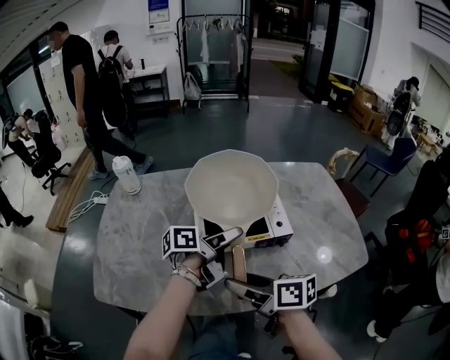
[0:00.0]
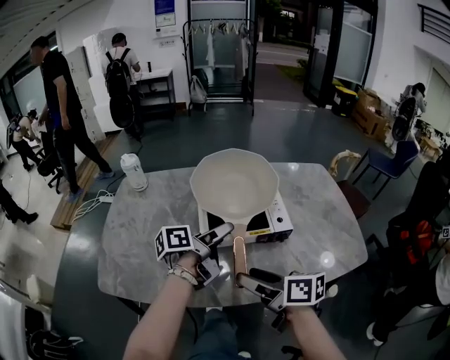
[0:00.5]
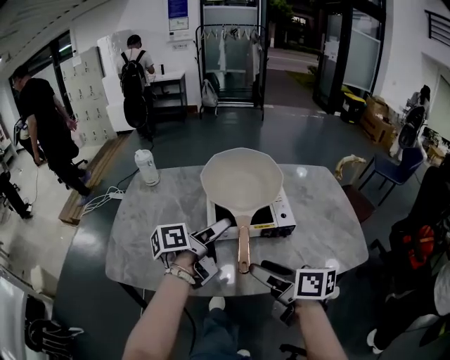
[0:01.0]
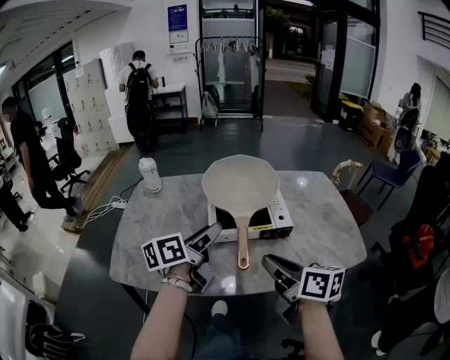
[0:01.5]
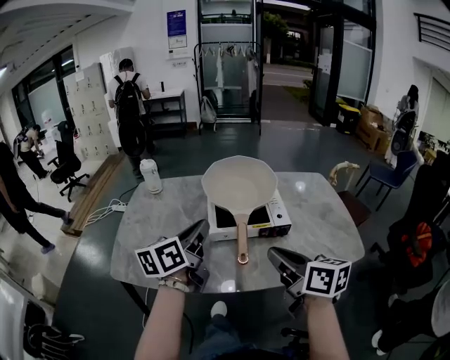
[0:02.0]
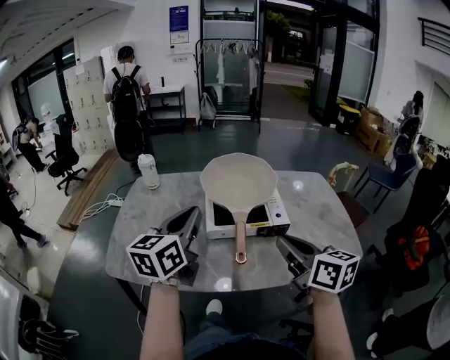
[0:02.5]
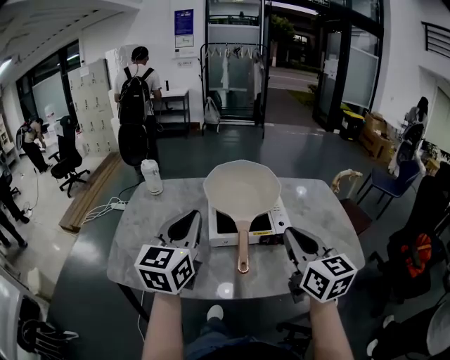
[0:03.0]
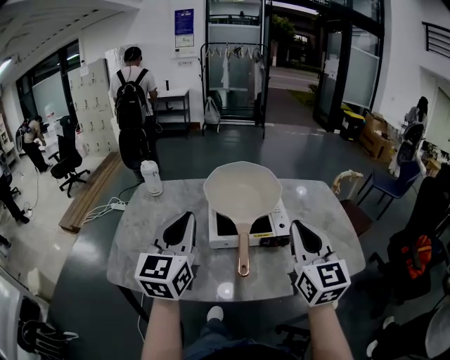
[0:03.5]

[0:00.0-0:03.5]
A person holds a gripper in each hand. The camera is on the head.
0:00.0 to 0:02.0: The left gripper shifts about 20 cm upward, to the left and backward, rotates roughly 50 degrees, and closes its fingers, while the right gripper is displaced upward and to the right by approximately 10 cm, swivels about 20 degrees, and closes.
0:02.0 to 0:03.5: The left gripper heads upward, covering about 5 cm, and swivels about 40 degrees; the right gripper shifts roughly 10 cm upward and forward, and swivels about 50 degrees.

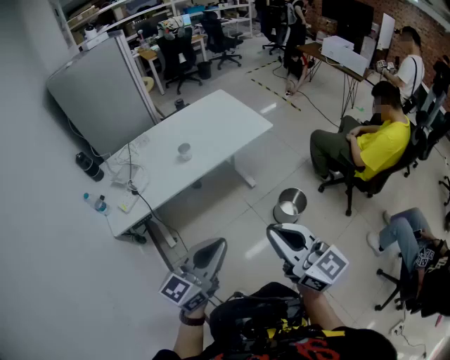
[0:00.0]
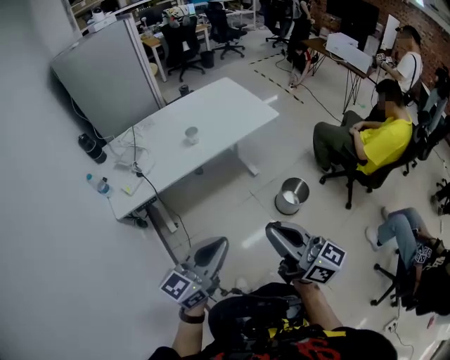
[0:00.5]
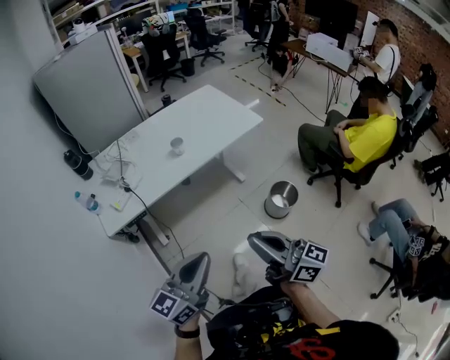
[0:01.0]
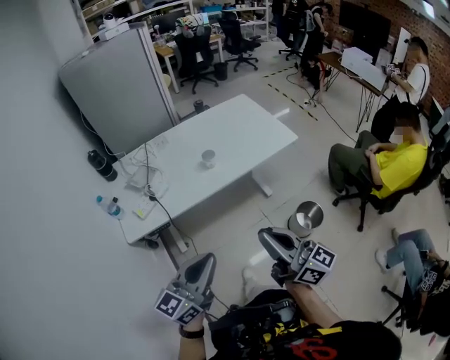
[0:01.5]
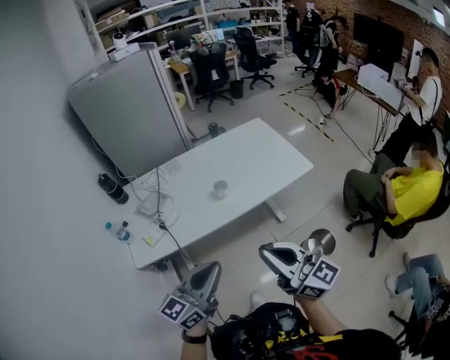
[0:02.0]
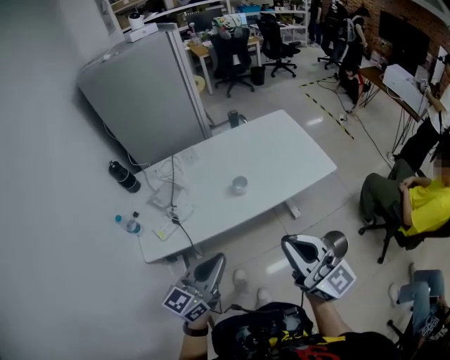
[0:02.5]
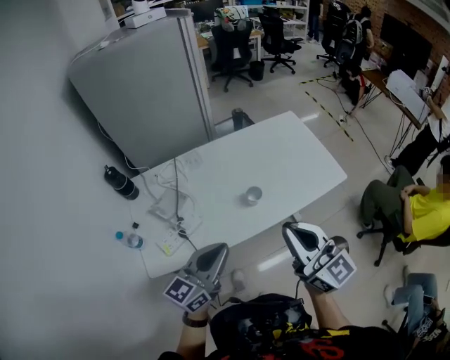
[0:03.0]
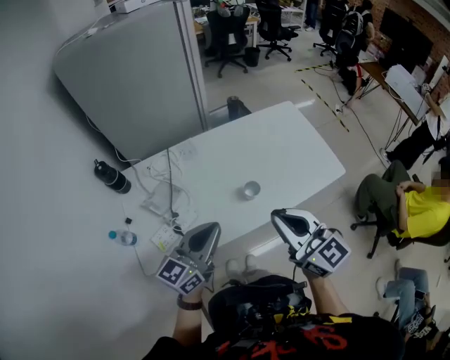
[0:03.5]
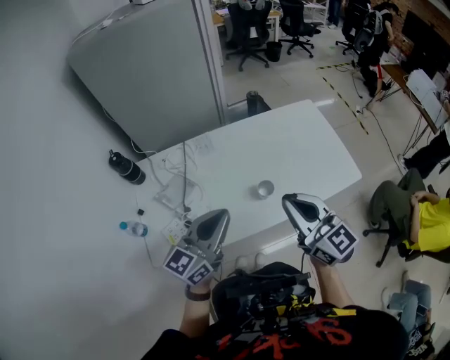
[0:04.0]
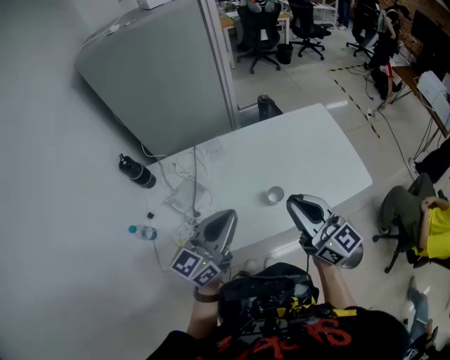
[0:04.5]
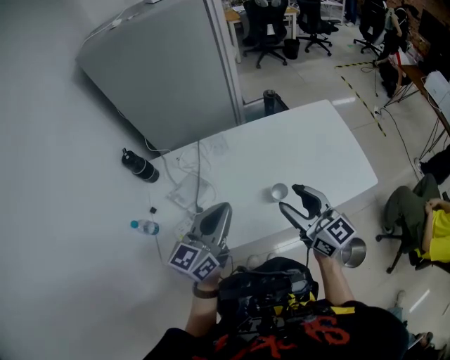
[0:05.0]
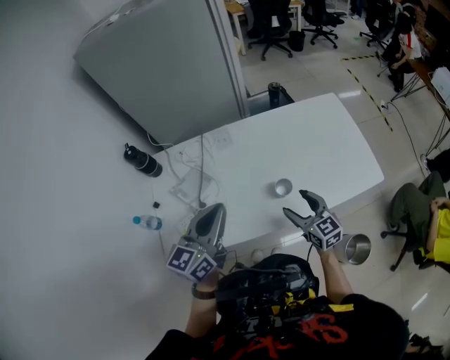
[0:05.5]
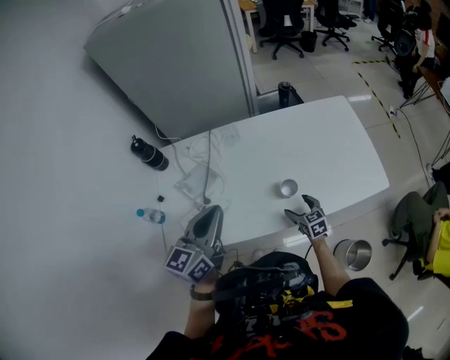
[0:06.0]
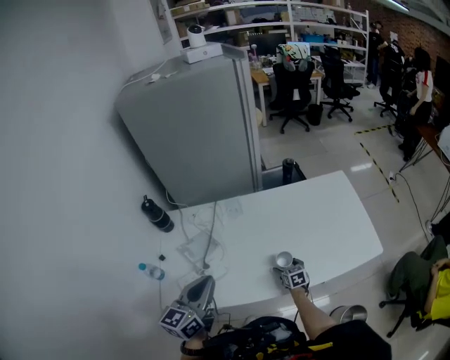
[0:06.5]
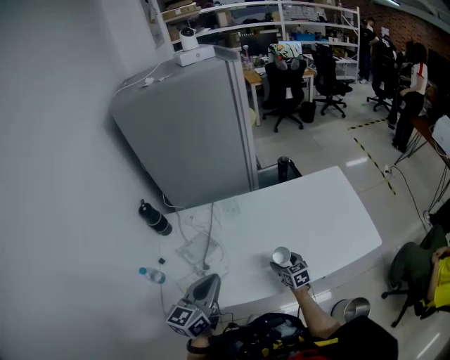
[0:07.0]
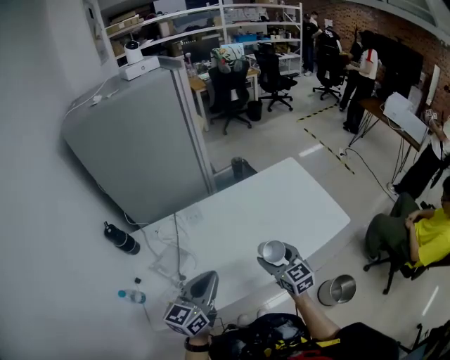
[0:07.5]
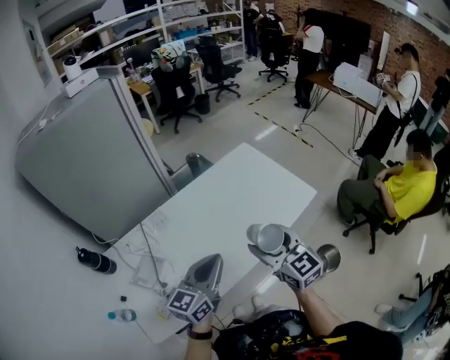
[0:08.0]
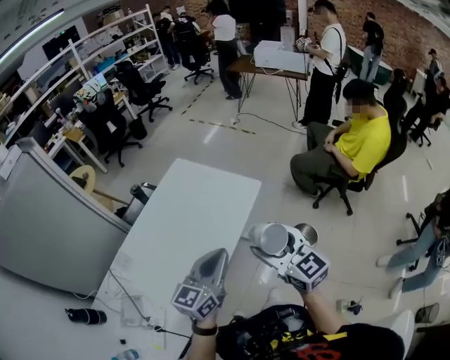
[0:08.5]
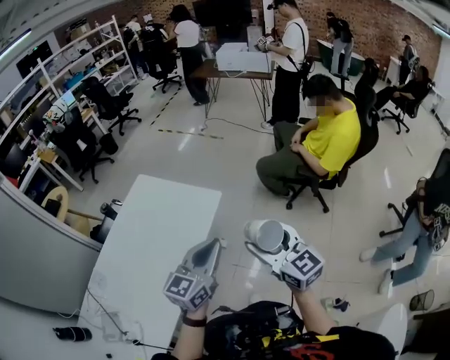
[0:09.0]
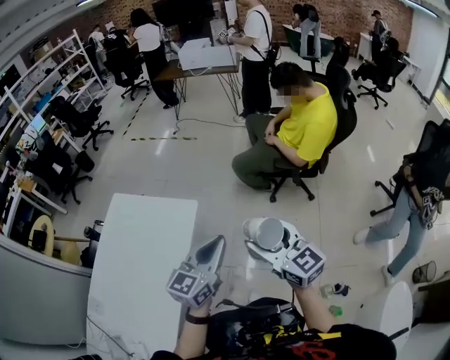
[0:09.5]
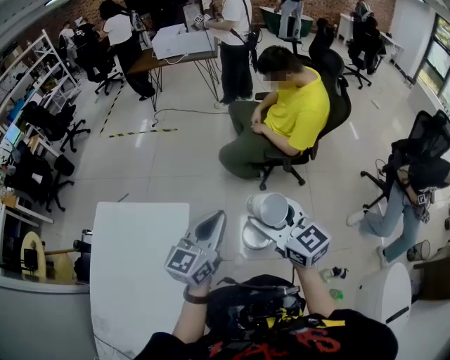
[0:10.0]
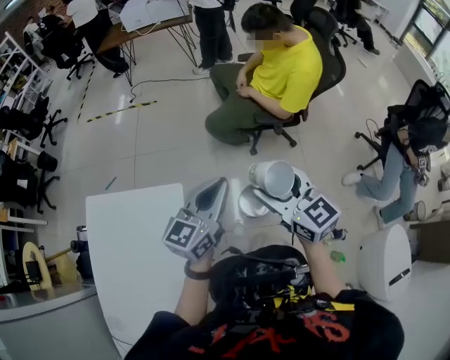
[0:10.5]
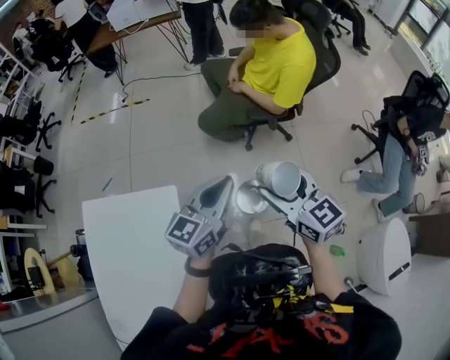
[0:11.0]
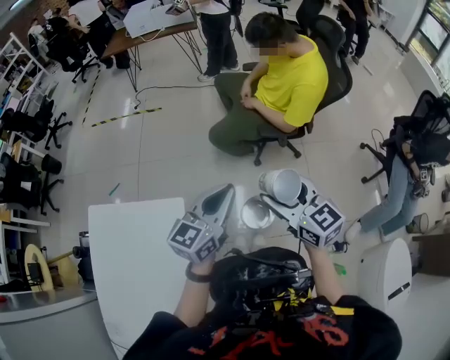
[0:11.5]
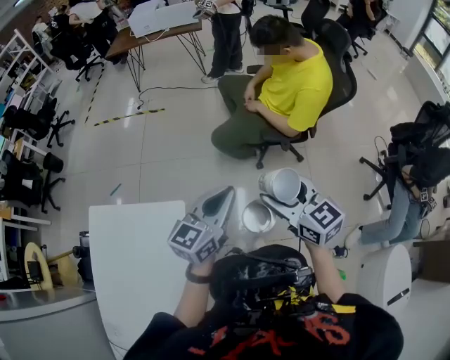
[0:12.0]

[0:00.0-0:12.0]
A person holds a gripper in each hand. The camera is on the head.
0:00.0 to 0:02.0: The grippers both shift forward and to the left by roughly 20 cm. The right gripper rotates approximately 20 degrees.
0:02.0 to 0:04.0: Both grippers travel together forward, about 30 cm.
0:04.0 to 0:06.0: The right gripper is displaced downward by some 40 cm, points its fingers some 40 degrees further downward, and opens its fingers. Meanwhile the left gripper heads to the left, covering about 5 cm.
0:06.0 to 0:08.0: The right gripper heads upward, covering some 35 cm, and rotates some 30 degrees. The left gripper changes place by approximately 15 cm, and changes its angle by approximately 30 degrees.
0:08.0 to 0:10.0: The pair of grippers is taken roughly 50 cm. The left gripper turns by approximately 50 degrees. Meanwhile the right gripper changes its angle by some 50 degrees.
0:10.0 to 0:12.0: Both grippers travel together forward, about 10 cm.

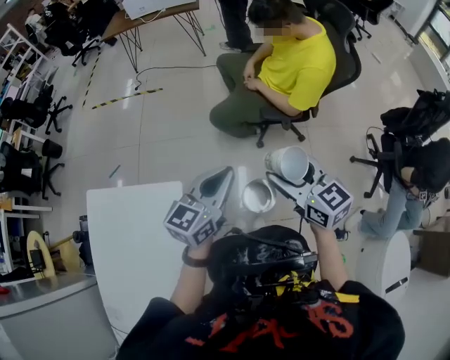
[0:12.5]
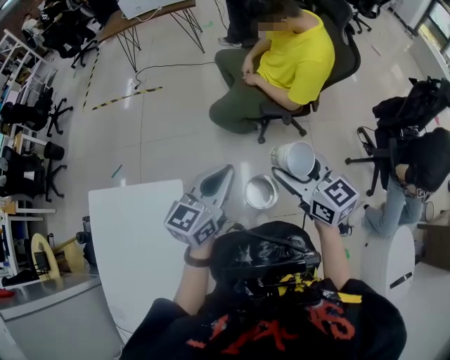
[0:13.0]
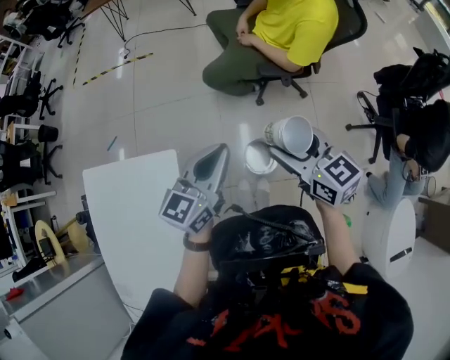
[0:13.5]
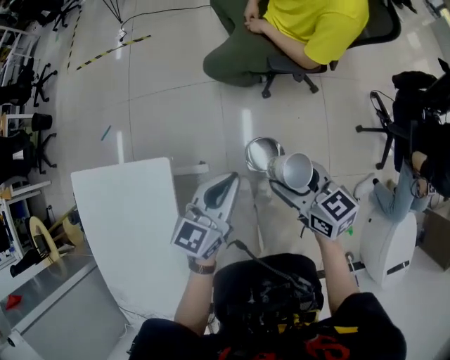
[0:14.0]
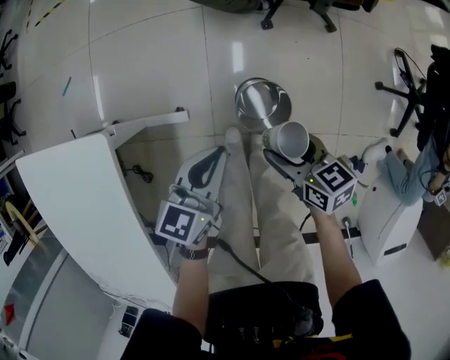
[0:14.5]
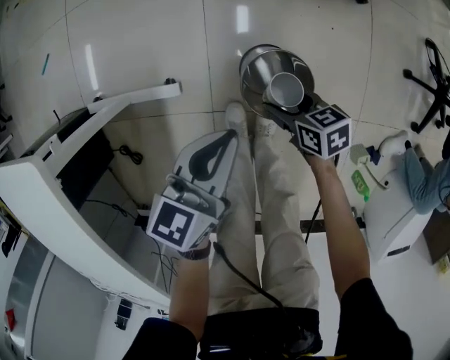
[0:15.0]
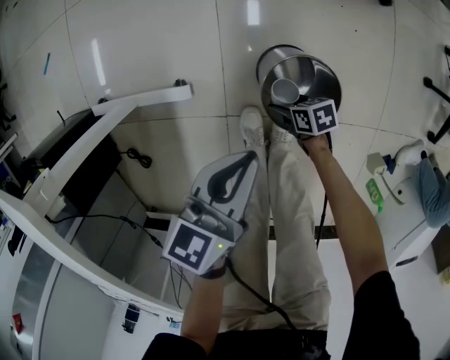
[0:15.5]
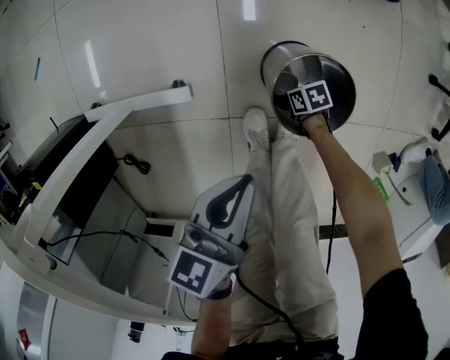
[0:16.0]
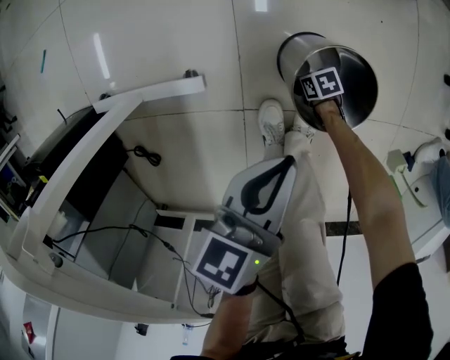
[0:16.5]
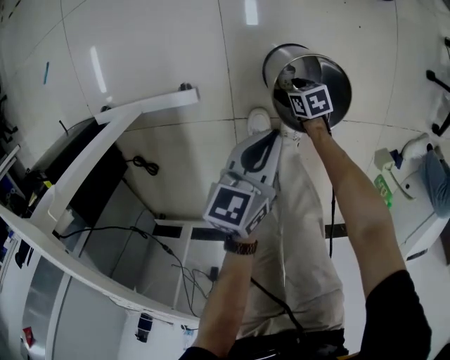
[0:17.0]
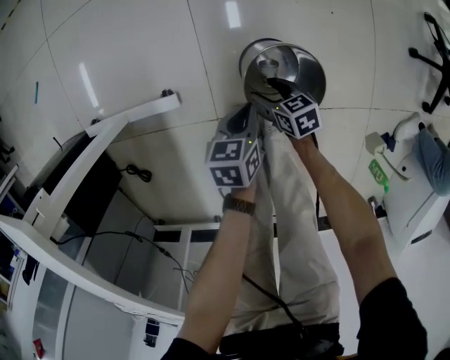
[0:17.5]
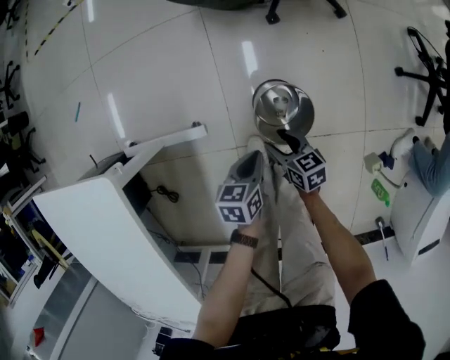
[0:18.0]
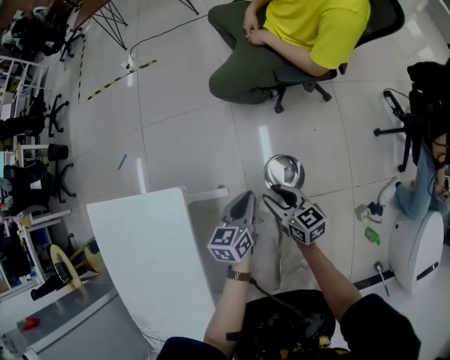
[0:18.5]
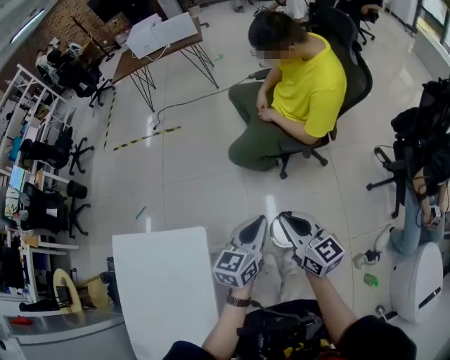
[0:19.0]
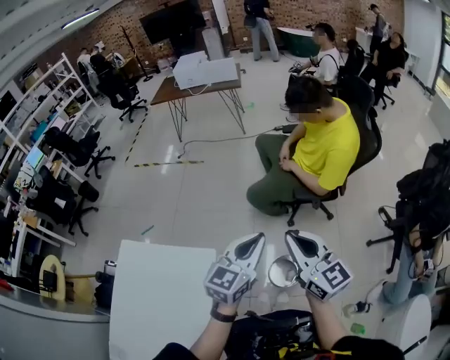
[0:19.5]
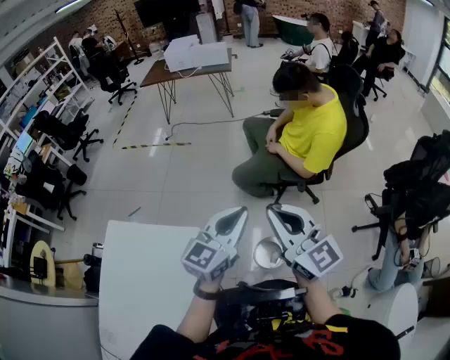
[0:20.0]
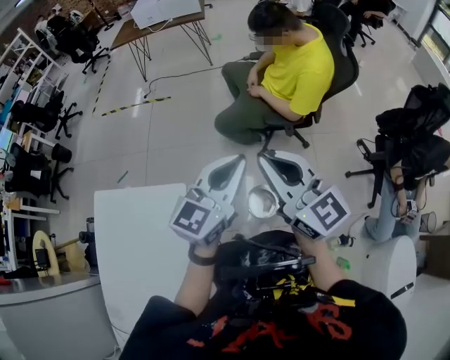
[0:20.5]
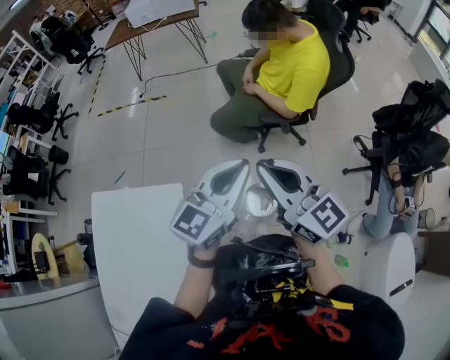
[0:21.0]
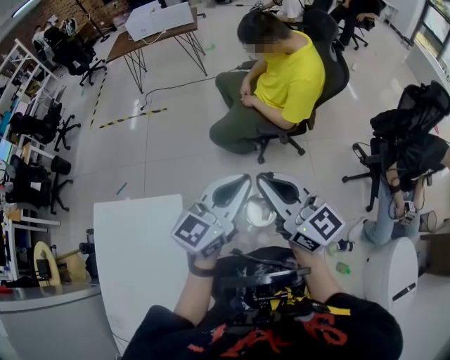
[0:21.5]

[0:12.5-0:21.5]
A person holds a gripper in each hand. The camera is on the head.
0:12.5 to 0:14.5: The two grippers go approximately 40 cm downward. The right gripper rotates roughly 40 degrees; the left gripper swivels about 20 degrees.
0:14.5 to 0:17.0: The left gripper is displaced downward by some 25 cm, while the right gripper heads downward, covering roughly 50 cm, and changes its angle by roughly 30 degrees.
0:17.0 to 0:19.5: The grippers both shift upward by approximately 80 cm. The left gripper turns by about 50 degrees, while the right gripper tips its fingers upward by roughly 60 degrees, and closes its fingers.
0:19.5 to 0:21.5: The left gripper heads to the right, covering approximately 5 cm; the right gripper shifts by about 5 cm.

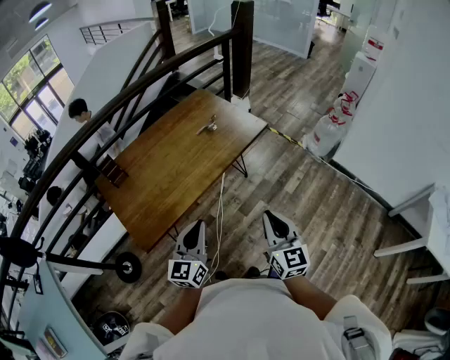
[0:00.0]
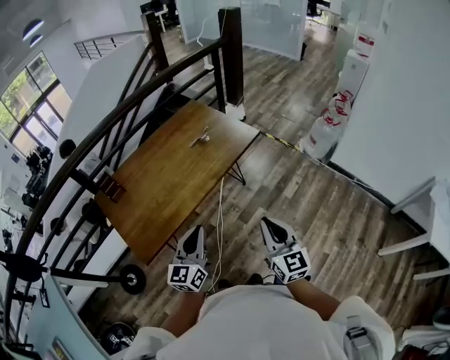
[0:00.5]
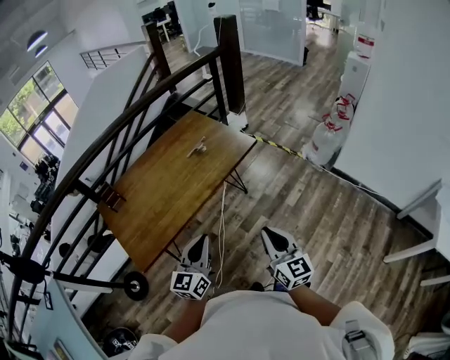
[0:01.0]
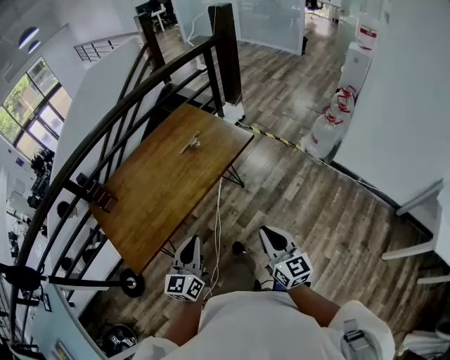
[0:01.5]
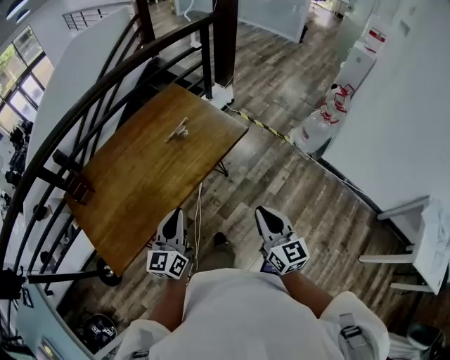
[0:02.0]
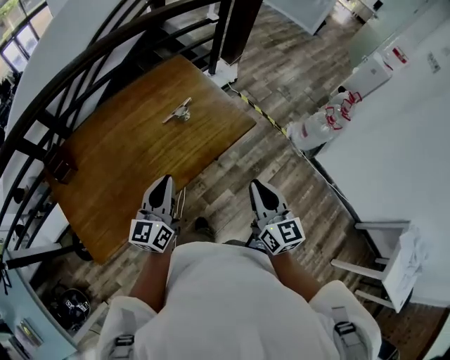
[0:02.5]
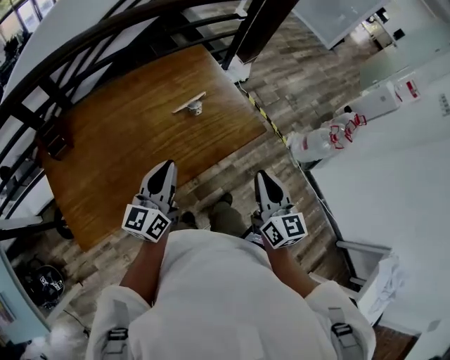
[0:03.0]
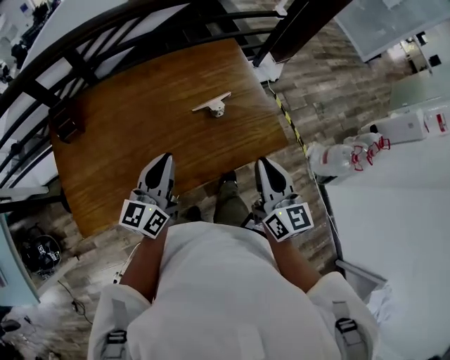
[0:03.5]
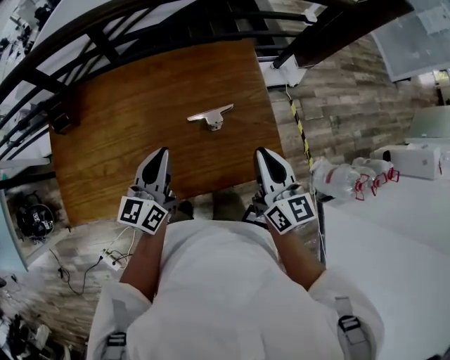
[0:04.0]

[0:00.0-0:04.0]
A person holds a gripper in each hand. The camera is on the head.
0:00.0 to 0:02.0: The grippers both shift forward and to the right by approximately 20 cm.
0:02.0 to 0:04.0: The left gripper moves approximately 35 cm, and swivels approximately 30 degrees; the right gripper ends up some 50 cm from where it was, and changes its angle by roughly 30 degrees.
